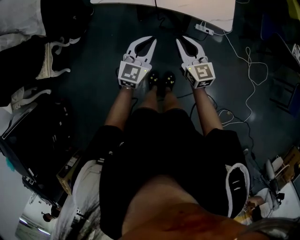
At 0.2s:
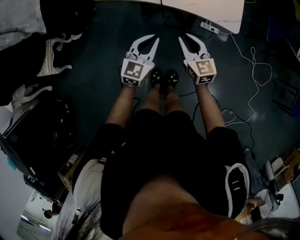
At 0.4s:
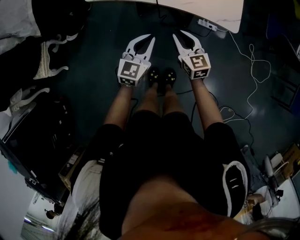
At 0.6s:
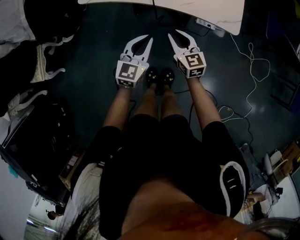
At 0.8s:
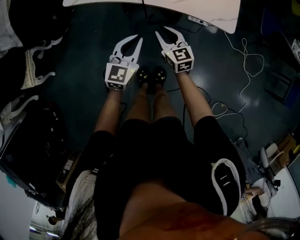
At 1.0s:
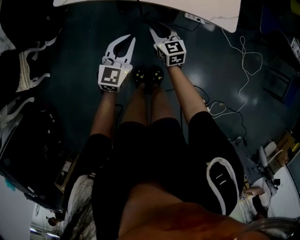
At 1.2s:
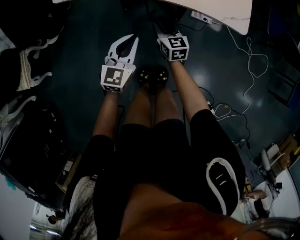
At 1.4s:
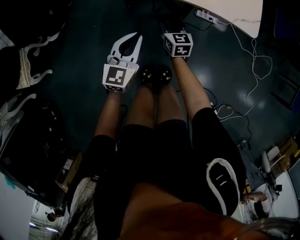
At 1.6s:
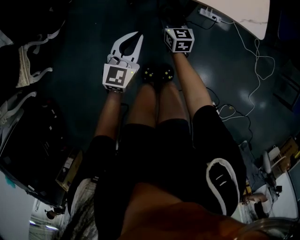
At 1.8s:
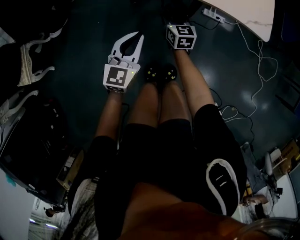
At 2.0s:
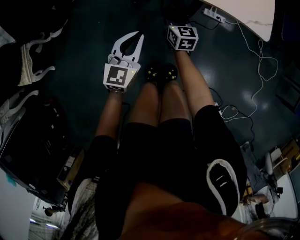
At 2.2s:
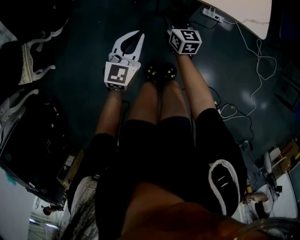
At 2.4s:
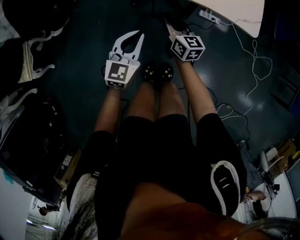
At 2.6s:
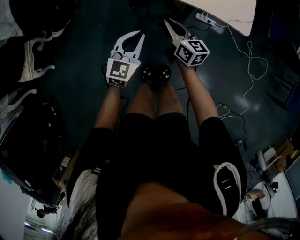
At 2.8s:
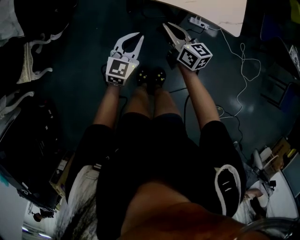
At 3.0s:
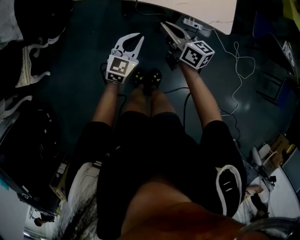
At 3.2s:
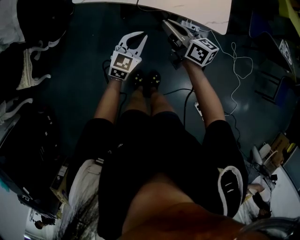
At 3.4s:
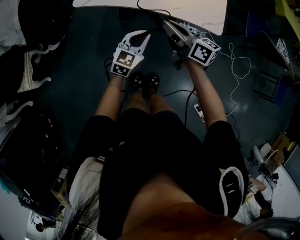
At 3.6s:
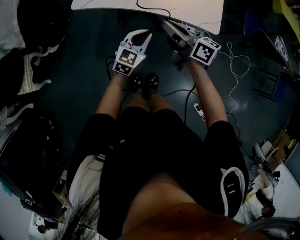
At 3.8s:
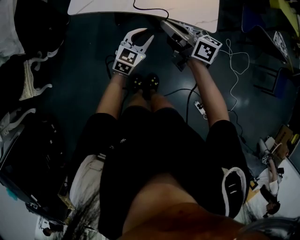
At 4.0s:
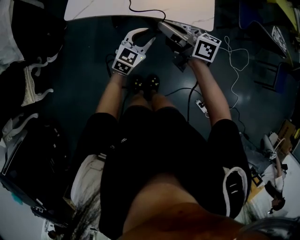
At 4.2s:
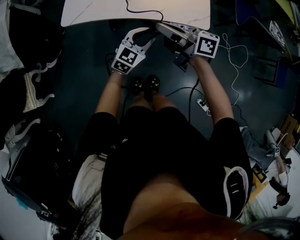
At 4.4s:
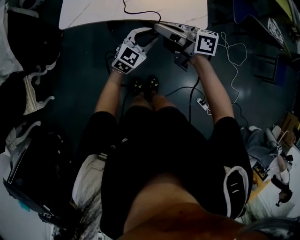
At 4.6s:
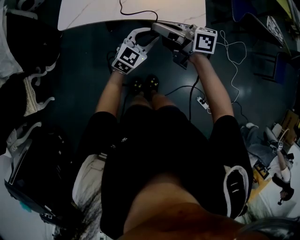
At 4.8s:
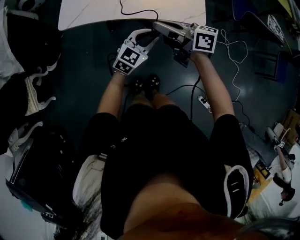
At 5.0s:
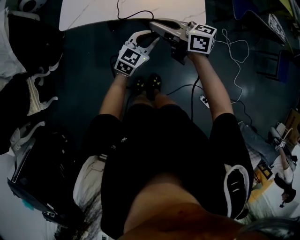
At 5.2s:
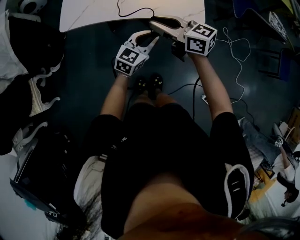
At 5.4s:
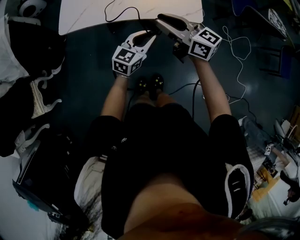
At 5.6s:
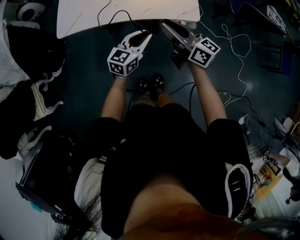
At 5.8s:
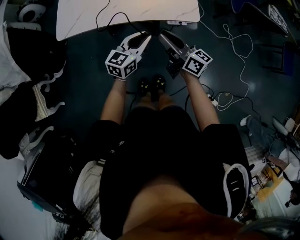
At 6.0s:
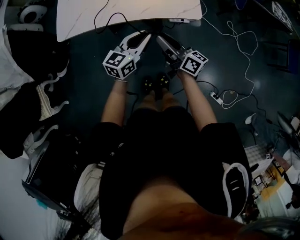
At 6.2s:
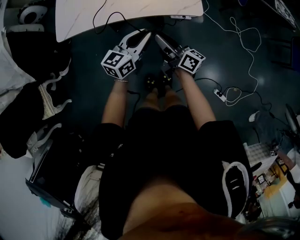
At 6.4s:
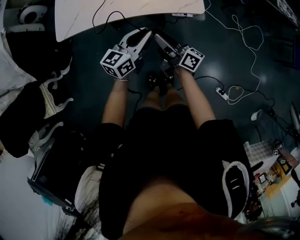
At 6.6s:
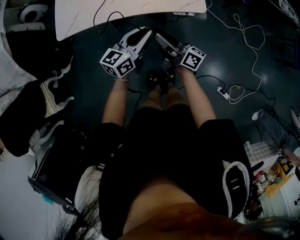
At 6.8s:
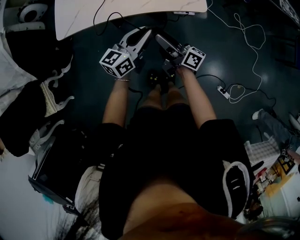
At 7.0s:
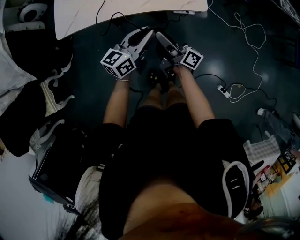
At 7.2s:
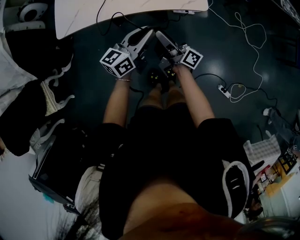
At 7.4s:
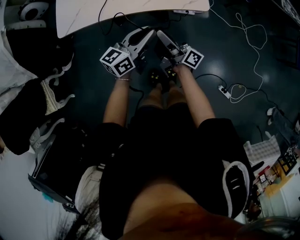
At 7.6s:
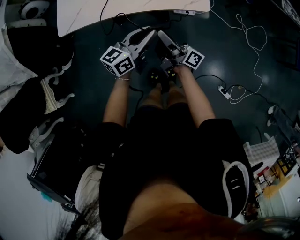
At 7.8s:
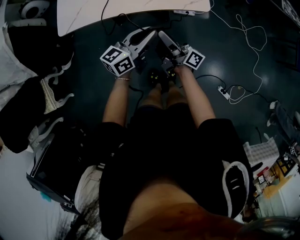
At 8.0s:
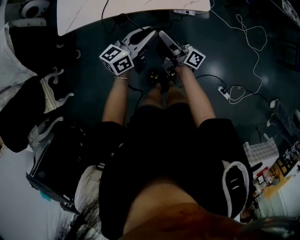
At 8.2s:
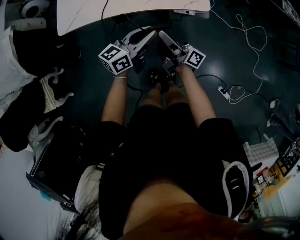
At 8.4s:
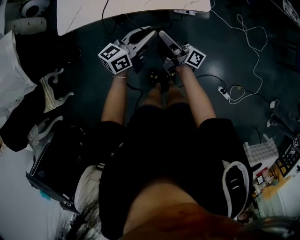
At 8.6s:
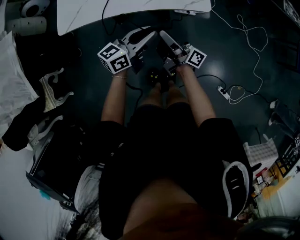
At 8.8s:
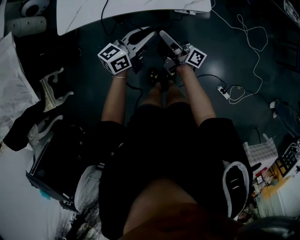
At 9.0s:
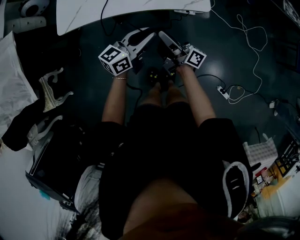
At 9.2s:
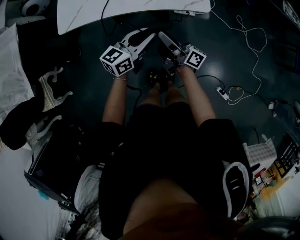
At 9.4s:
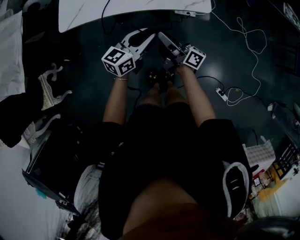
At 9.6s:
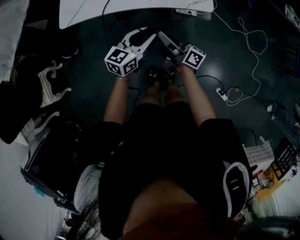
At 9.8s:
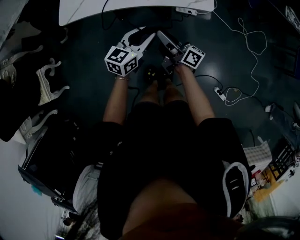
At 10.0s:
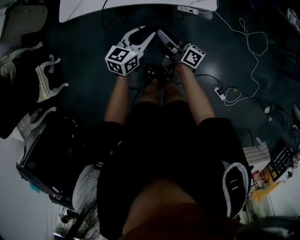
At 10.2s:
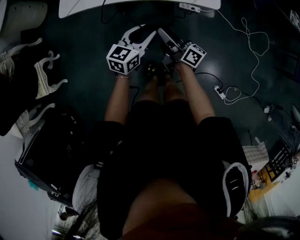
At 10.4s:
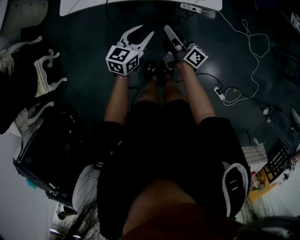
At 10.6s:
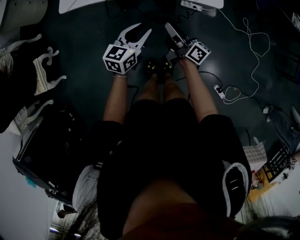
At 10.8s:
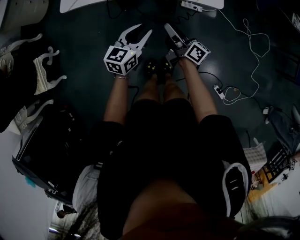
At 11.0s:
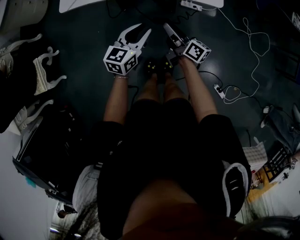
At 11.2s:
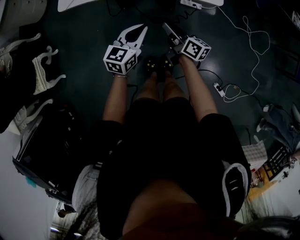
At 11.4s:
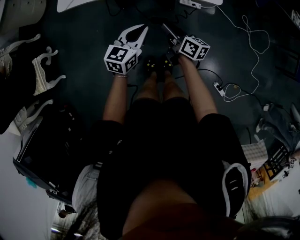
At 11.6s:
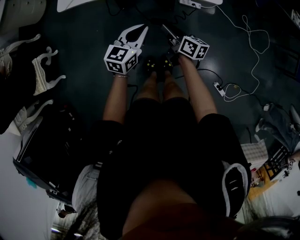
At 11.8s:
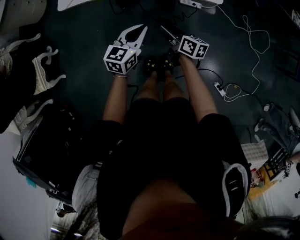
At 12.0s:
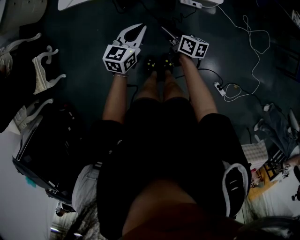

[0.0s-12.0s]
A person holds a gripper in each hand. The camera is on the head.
0.0s to 1.6s: The left gripper moves downward, roughly 20 cm; the right gripper is displaced downward and forward by roughly 30 cm.
1.6s to 3.0s: The left gripper travels upward by some 10 cm, while the right gripper moves upward, about 25 cm, and rotates approximately 30 degrees.
3.0s to 4.4s: The right gripper goes about 10 cm upward, and rotates some 20 degrees. Meanwhile the left gripper moves to the right and upward, some 10 cm, changes its angle by some 30 degrees, and opens.
4.4s to 6.0s: The left gripper changes its angle by approximately 30 degrees; the right gripper travels downward and to the right by approximately 10 cm, and rotates about 30 degrees.
6.0s to 7.6s: The right gripper swivels about 30 degrees, and opens and closes again.
7.6s to 9.0s: The grippers move only a little.
9.0s to 10.4s: The left gripper heads downward, covering some 5 cm, and turns by approximately 20 degrees.
10.4s to 12.0s: The right gripper goes approximately 10 cm downward, tips its fingers downward by approximately 30 degrees, and opens up. Meanwhile the left gripper closes up.

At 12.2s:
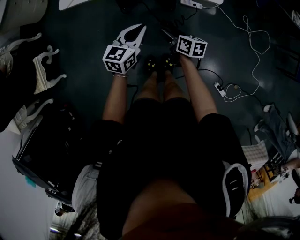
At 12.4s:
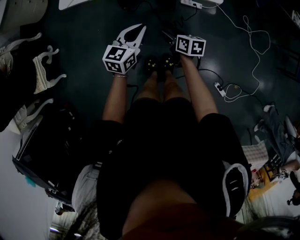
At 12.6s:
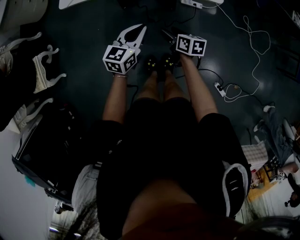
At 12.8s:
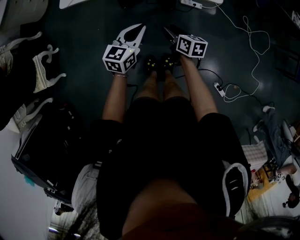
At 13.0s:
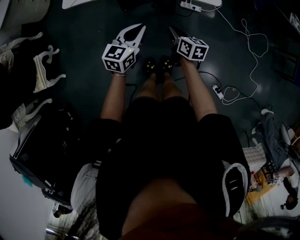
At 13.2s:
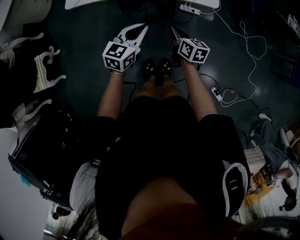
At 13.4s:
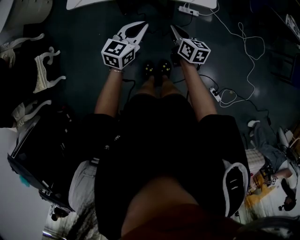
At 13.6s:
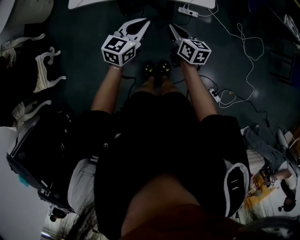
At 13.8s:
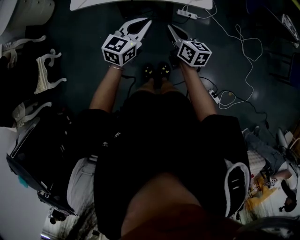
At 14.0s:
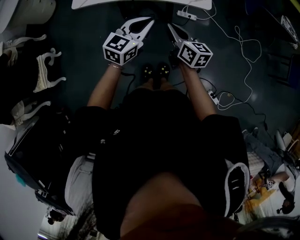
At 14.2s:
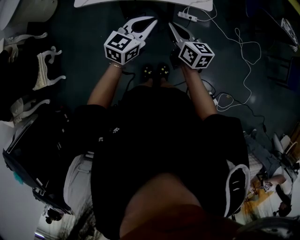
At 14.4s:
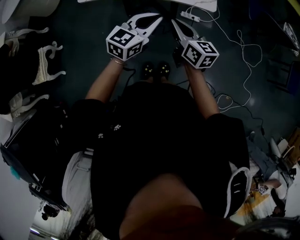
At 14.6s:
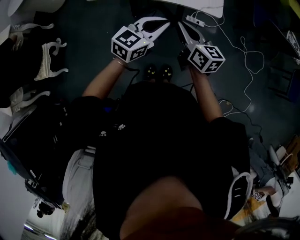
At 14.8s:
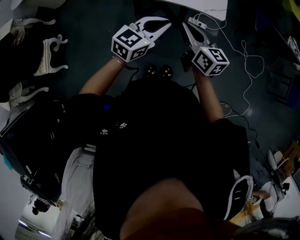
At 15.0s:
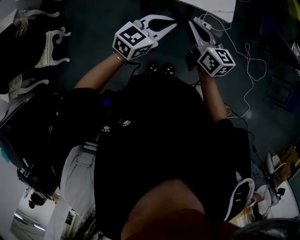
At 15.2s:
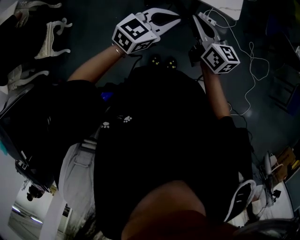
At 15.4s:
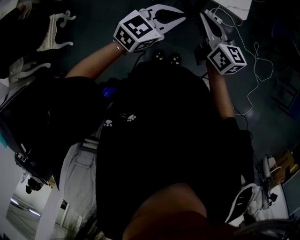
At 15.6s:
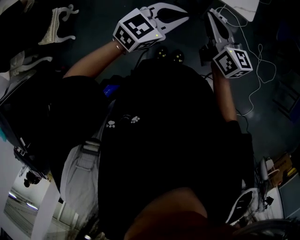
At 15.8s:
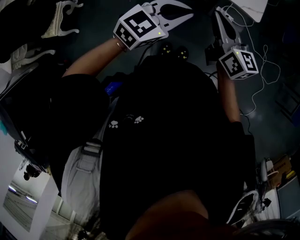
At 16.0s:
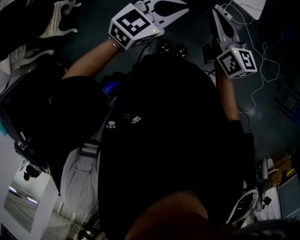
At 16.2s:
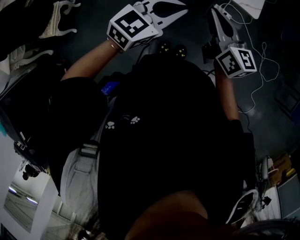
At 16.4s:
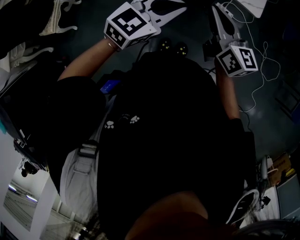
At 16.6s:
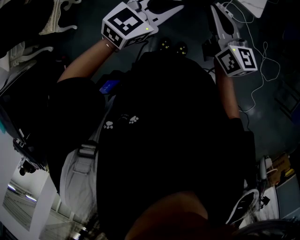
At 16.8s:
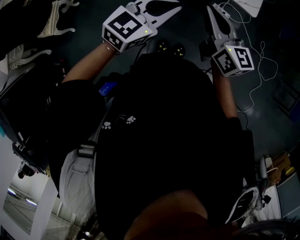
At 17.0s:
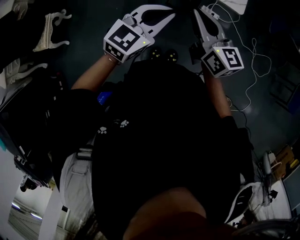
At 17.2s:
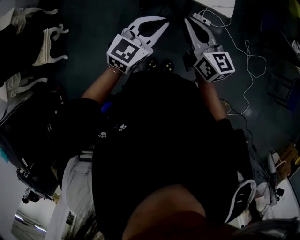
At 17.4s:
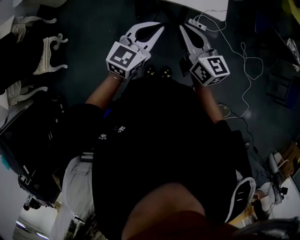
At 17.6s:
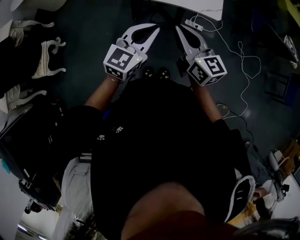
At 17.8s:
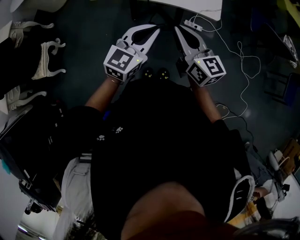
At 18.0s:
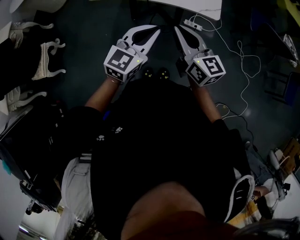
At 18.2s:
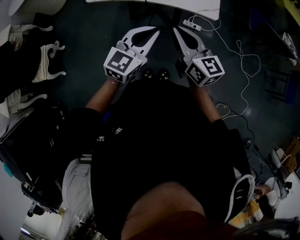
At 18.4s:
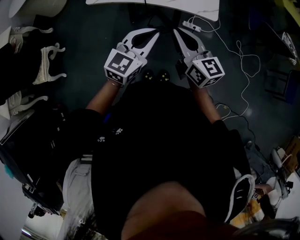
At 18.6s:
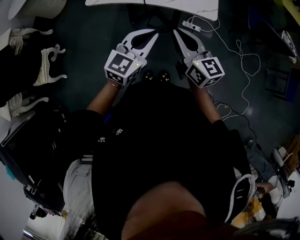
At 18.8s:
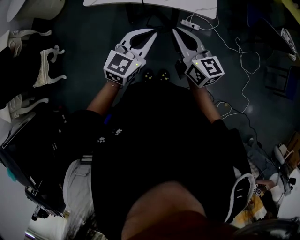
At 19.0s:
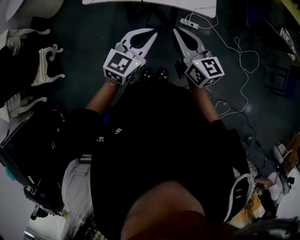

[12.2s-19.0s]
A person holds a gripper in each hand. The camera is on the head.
12.2s to 13.6s: The right gripper moves upward, about 10 cm, and closes, while the left gripper heads upward, covering approximately 10 cm.
13.6s to 15.0s: The left gripper is displaced upward by about 10 cm, while the right gripper goes approximately 15 cm upward.
15.0s to 16.2s: The left gripper ends up roughly 5 cm from where it was.
16.2s to 19.0s: The grippers make only small movements.

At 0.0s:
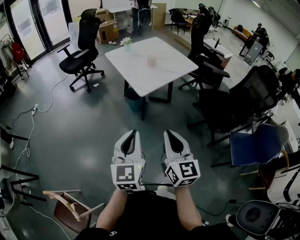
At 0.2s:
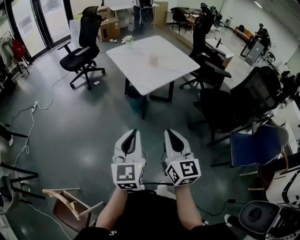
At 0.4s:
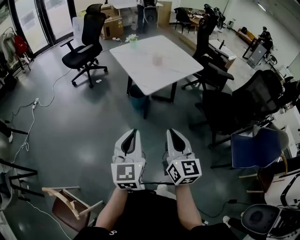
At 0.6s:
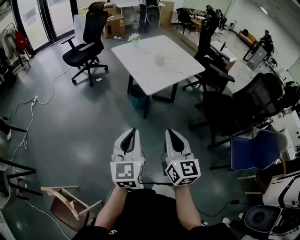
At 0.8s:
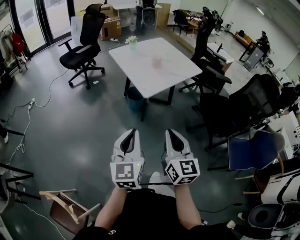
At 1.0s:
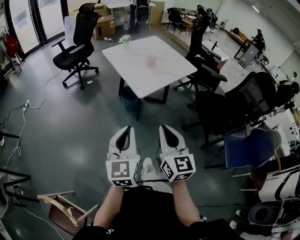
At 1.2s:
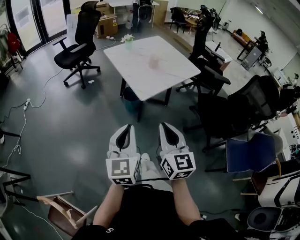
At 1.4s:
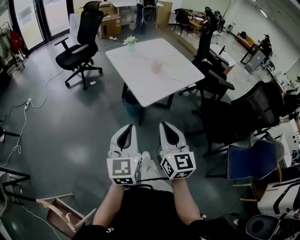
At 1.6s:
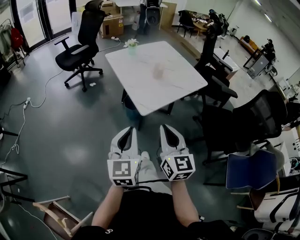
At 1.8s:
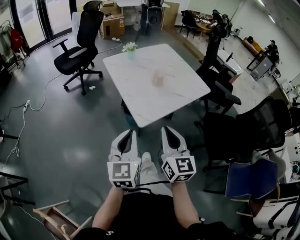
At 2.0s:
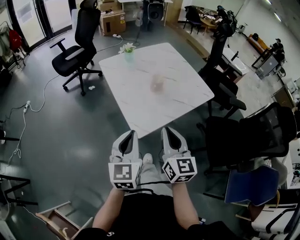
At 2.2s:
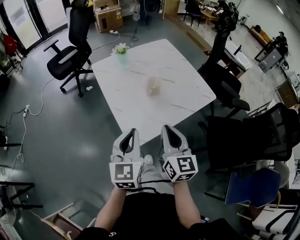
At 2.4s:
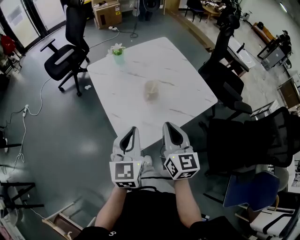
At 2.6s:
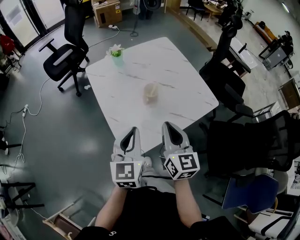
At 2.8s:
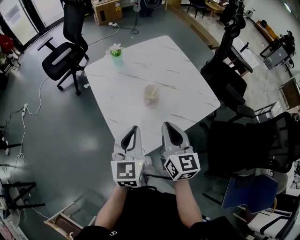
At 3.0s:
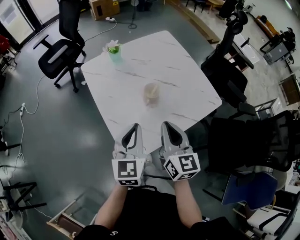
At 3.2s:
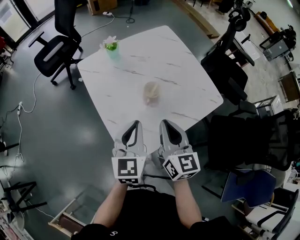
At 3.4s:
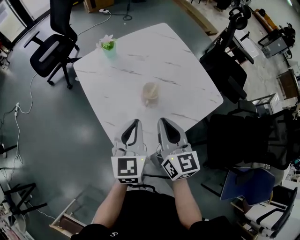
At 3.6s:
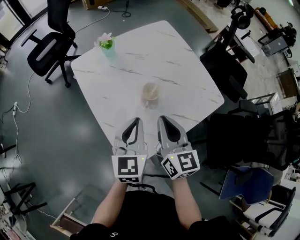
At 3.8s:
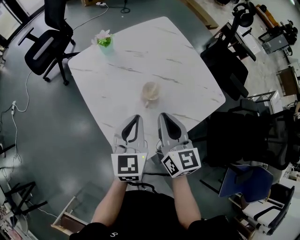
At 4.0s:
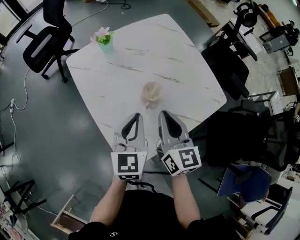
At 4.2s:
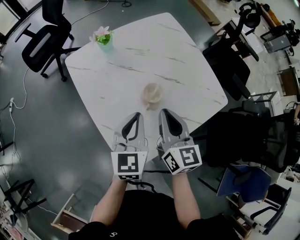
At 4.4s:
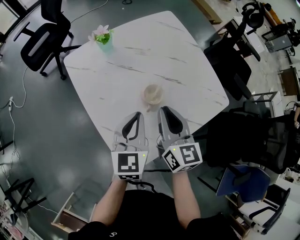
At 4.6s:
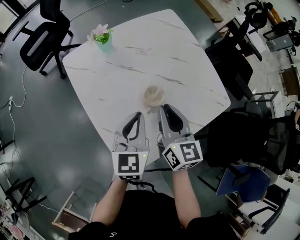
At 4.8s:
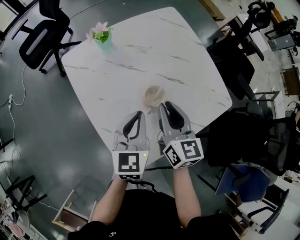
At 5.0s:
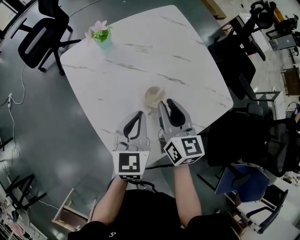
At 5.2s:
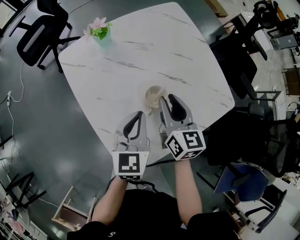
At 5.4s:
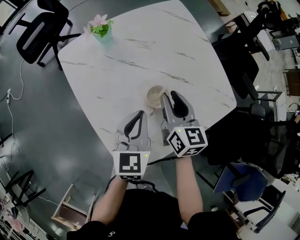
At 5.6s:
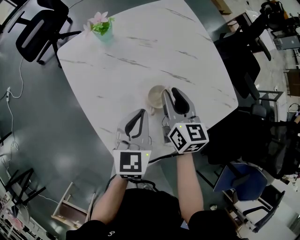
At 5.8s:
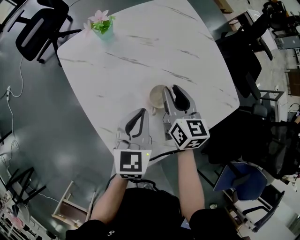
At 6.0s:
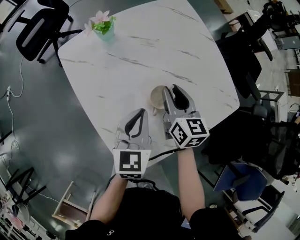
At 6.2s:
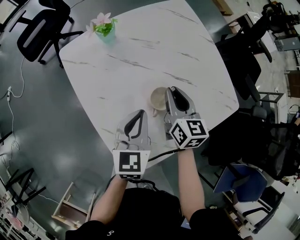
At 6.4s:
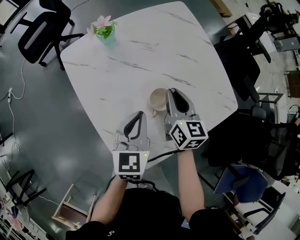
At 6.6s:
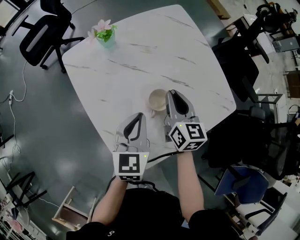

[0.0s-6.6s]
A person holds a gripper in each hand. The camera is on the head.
0.0s to 1.6s: Both grippers move forward, roughly 20 cm.
1.6s to 3.2s: The two grippers travel together, forward, roughly 40 cm.
3.2s to 5.0s: The two grippers go approximately 15 cm forward and downward. The right gripper opens.
5.0s to 6.6s: The right gripper changes place by approximately 5 cm.
